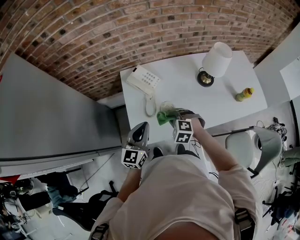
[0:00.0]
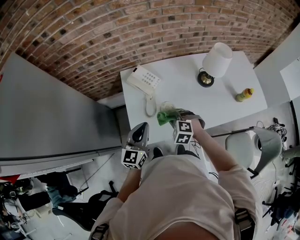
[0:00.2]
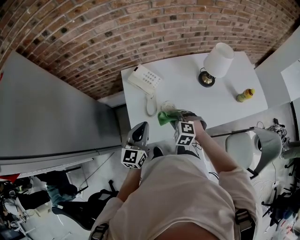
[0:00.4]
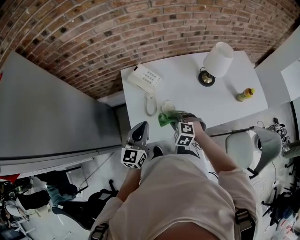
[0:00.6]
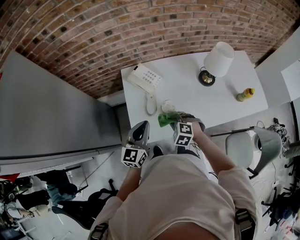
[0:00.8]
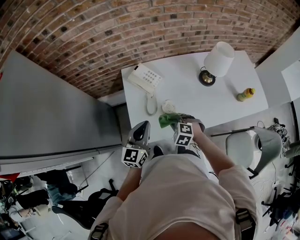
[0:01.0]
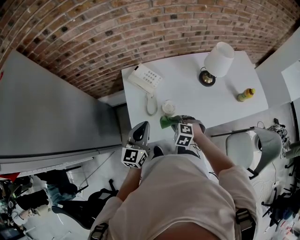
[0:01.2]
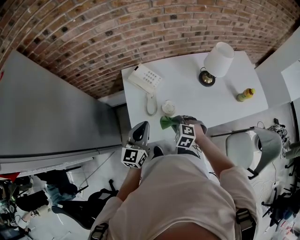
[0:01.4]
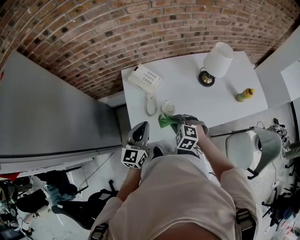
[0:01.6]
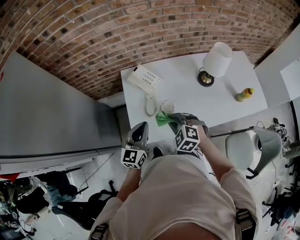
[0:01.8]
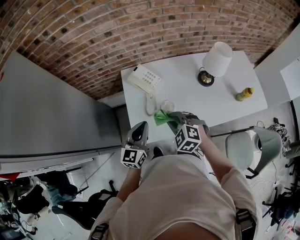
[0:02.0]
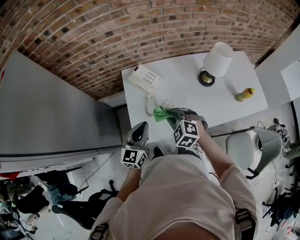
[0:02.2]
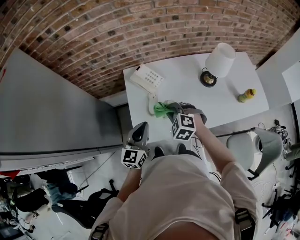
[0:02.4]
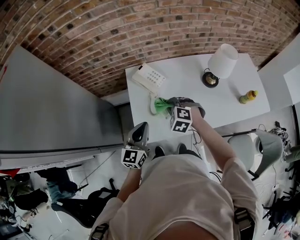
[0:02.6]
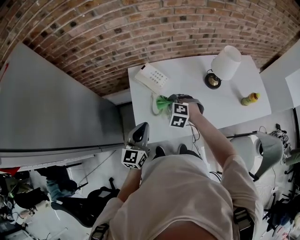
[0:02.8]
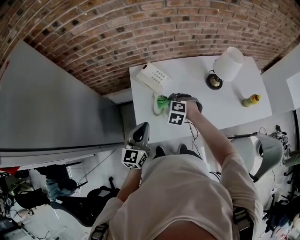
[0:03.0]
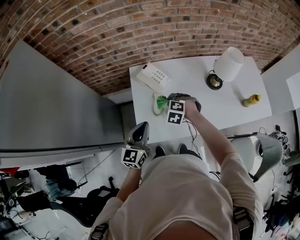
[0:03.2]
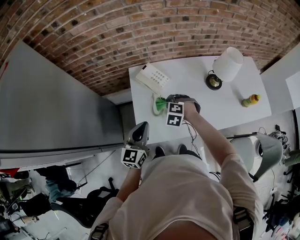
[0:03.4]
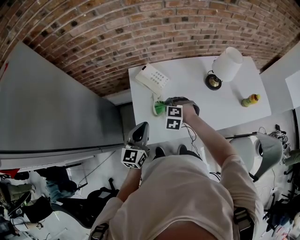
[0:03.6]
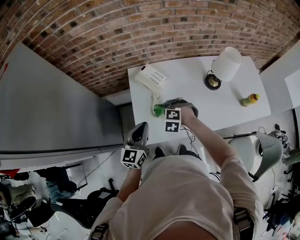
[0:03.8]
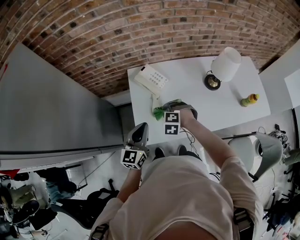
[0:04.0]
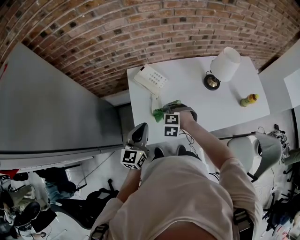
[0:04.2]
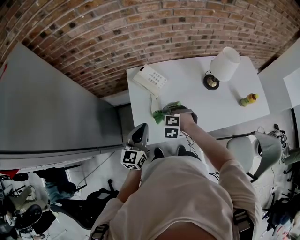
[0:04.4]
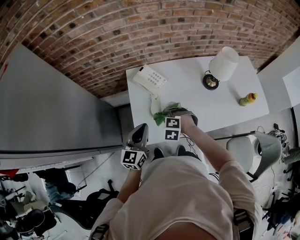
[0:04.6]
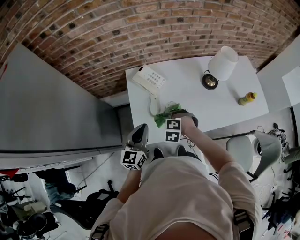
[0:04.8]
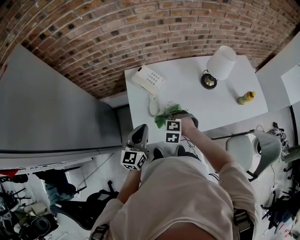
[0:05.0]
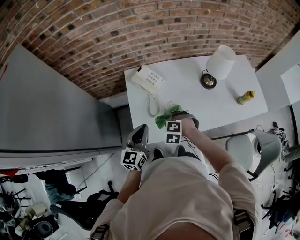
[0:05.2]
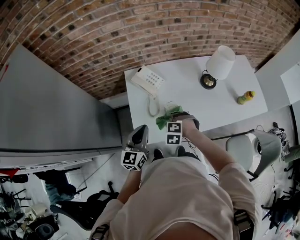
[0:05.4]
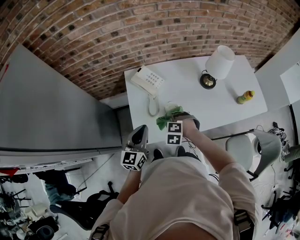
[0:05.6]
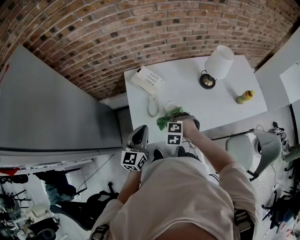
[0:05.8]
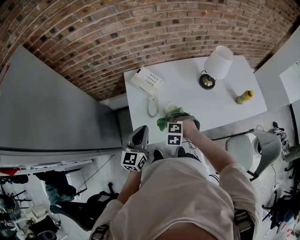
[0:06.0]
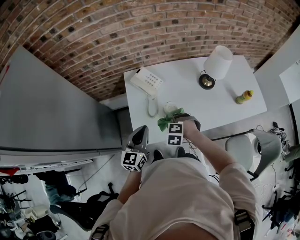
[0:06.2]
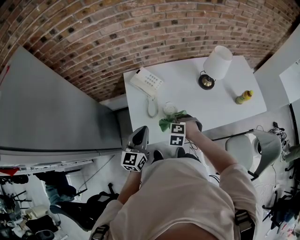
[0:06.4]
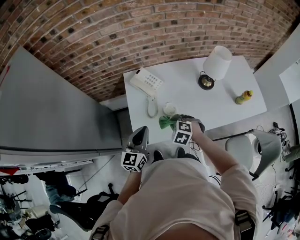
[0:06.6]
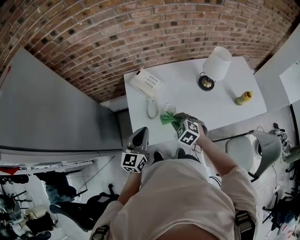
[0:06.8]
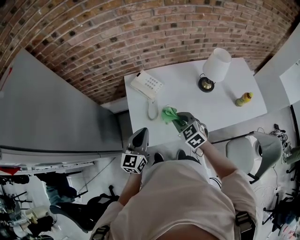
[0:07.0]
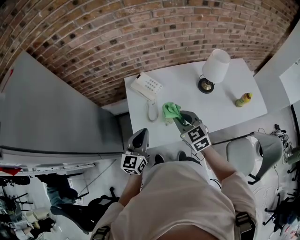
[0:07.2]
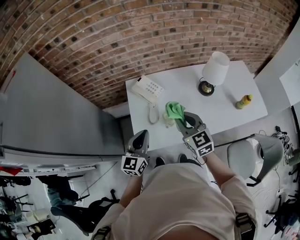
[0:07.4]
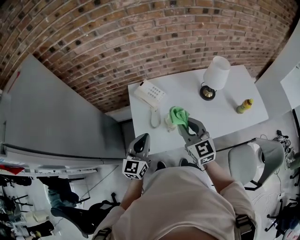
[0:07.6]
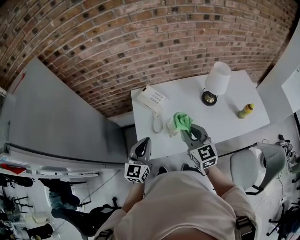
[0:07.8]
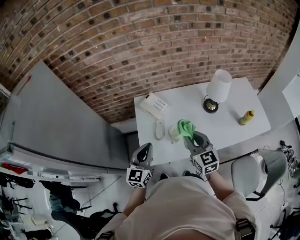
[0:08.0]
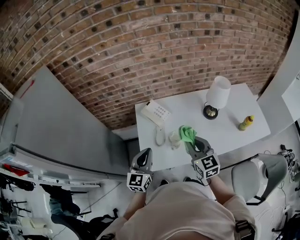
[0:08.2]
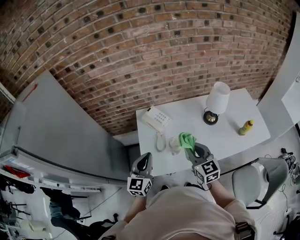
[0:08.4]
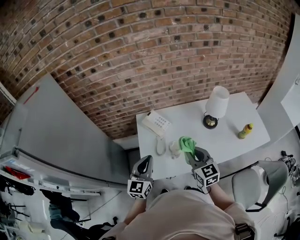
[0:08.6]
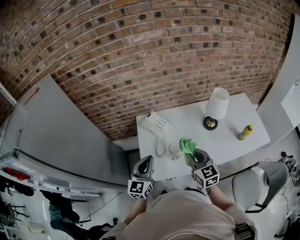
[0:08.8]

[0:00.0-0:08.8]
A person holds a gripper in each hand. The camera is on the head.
0:00.0 to 0:01.4: The grippers move only a little.
0:01.4 to 0:03.0: The right gripper goes some 10 cm forward.
0:03.0 to 0:04.4: The right gripper is displaced backward by some 5 cm.
0:04.4 to 0:05.8: The right gripper changes place by about 5 cm.
0:05.8 to 0:07.4: The right gripper moves upward, roughly 20 cm, and tips its fingers upward by roughly 50 degrees.
0:07.4 to 0:08.8: The grippers make only small movements.

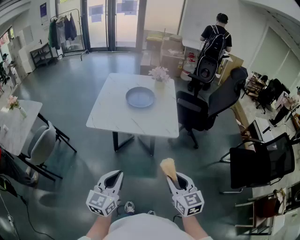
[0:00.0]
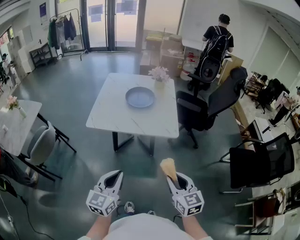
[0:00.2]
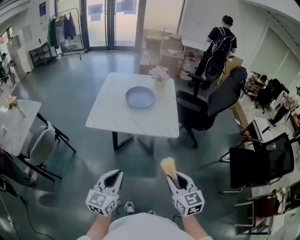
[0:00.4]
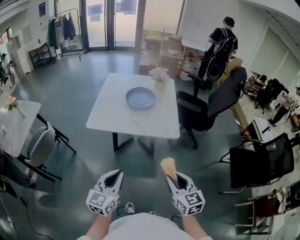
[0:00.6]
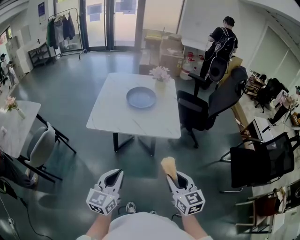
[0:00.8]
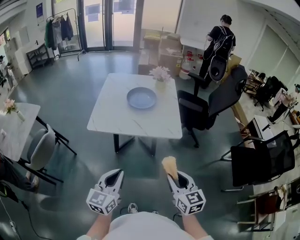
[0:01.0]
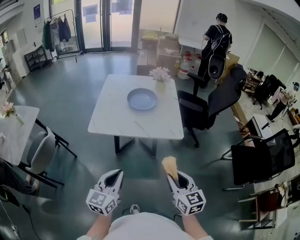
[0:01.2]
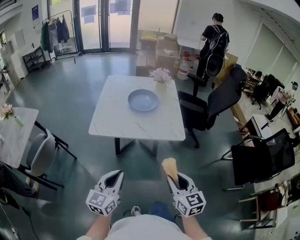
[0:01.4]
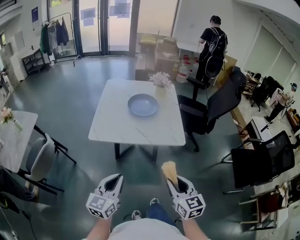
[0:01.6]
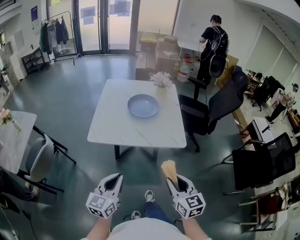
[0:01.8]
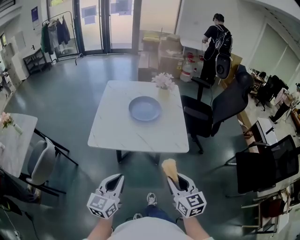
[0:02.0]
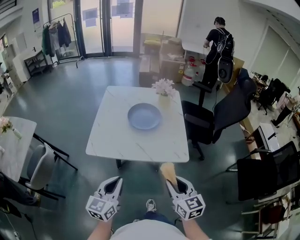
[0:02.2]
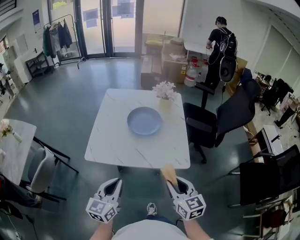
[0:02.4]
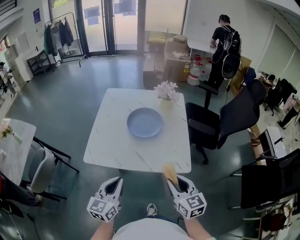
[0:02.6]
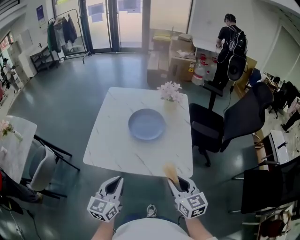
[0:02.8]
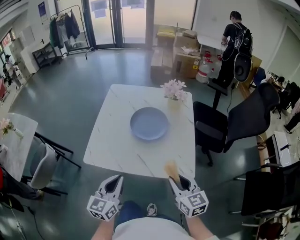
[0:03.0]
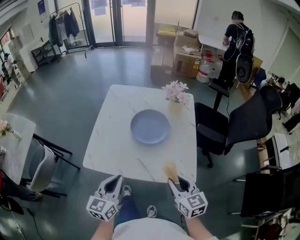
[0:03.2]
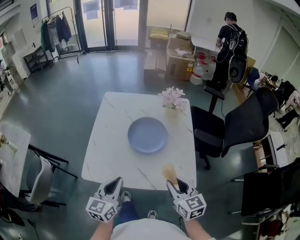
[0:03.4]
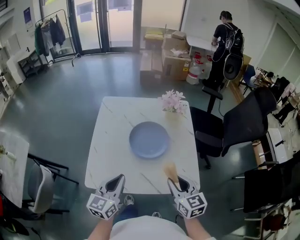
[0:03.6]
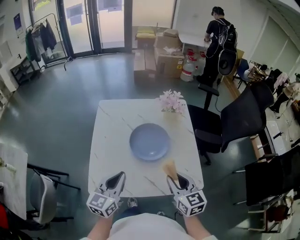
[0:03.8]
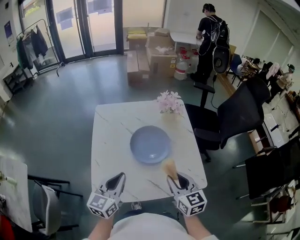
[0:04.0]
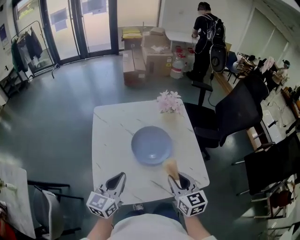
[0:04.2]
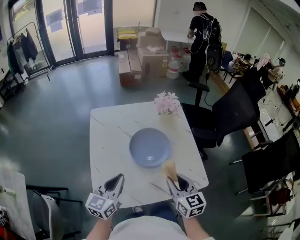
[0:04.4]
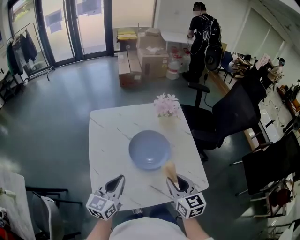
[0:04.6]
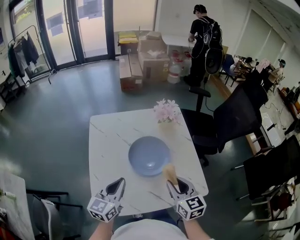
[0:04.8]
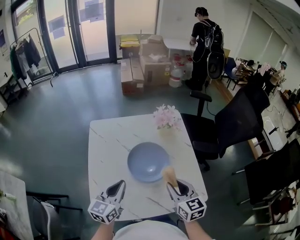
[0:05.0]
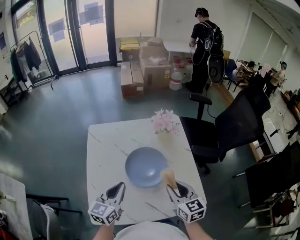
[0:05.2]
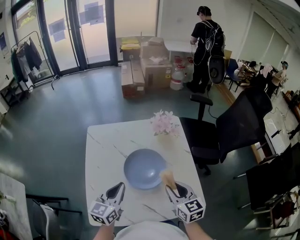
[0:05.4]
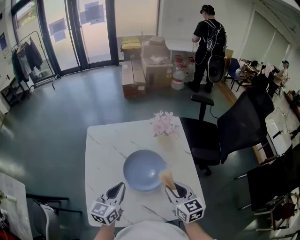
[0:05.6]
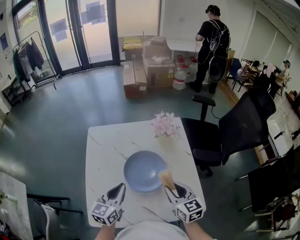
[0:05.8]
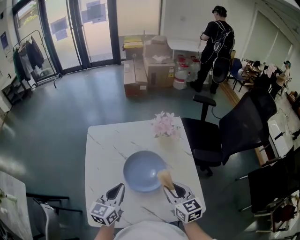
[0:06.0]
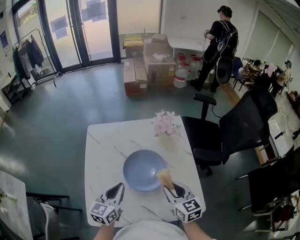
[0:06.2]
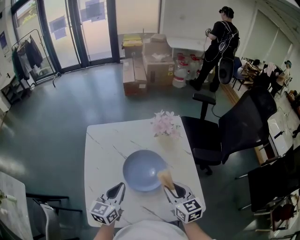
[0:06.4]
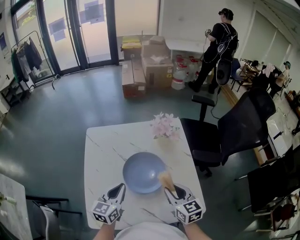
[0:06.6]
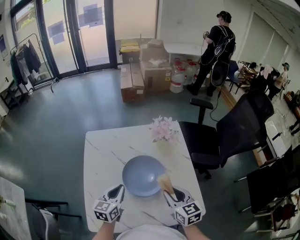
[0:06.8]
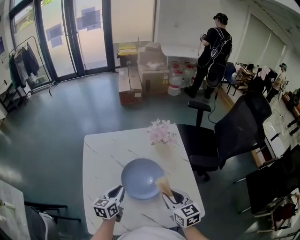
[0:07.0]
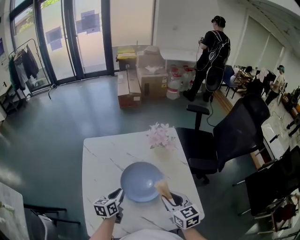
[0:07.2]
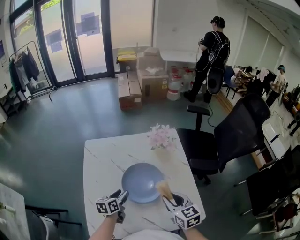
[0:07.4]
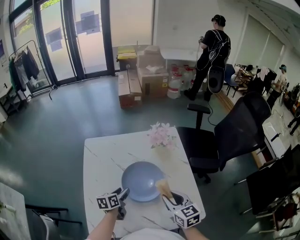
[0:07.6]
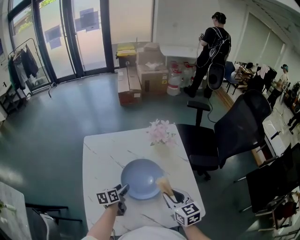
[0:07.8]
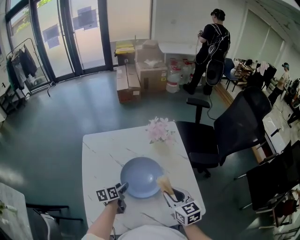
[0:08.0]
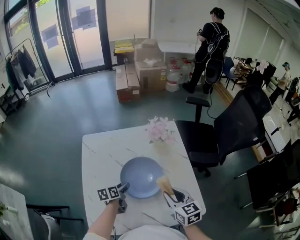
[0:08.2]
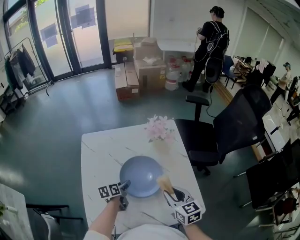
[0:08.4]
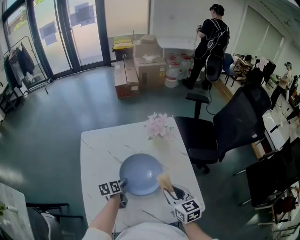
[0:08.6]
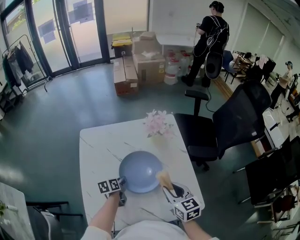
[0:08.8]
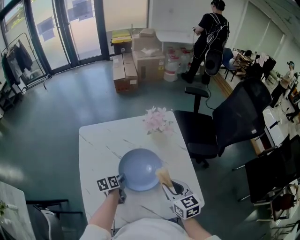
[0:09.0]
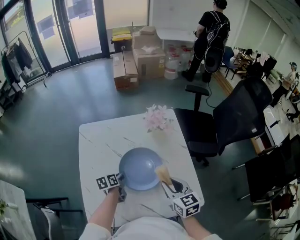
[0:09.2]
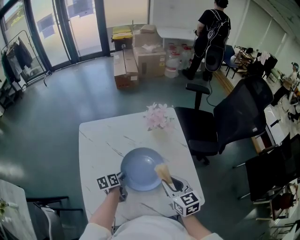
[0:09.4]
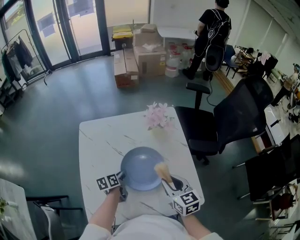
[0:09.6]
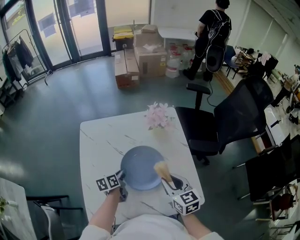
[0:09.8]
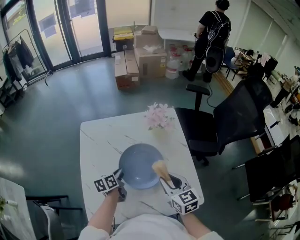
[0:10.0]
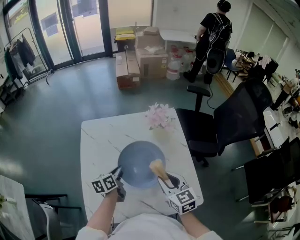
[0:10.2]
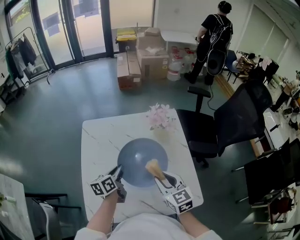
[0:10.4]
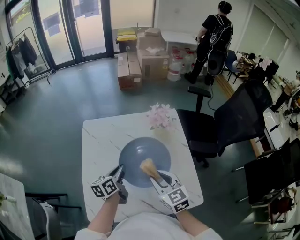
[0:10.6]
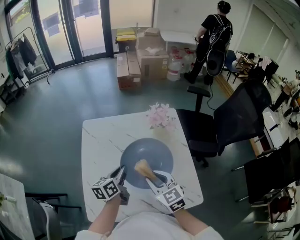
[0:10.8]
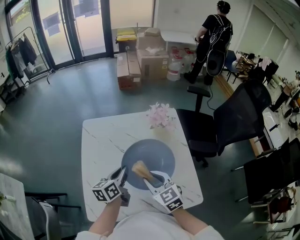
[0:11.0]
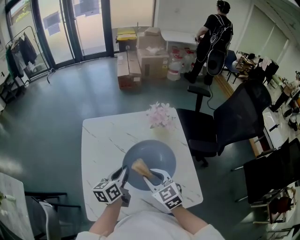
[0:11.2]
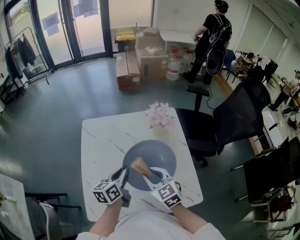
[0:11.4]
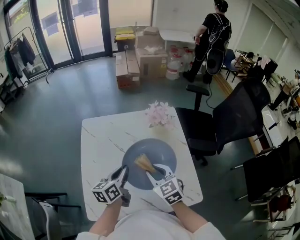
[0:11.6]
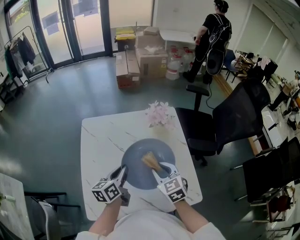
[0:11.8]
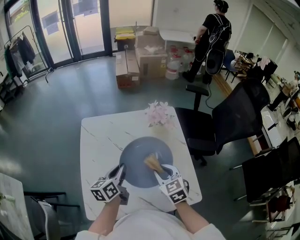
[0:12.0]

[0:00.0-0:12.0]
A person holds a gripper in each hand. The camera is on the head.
0:00.0 to 0:01.6: The left gripper moves to the left and forward, roughly 10 cm; the right gripper heads to the left, covering roughly 10 cm.
0:01.6 to 0:03.0: Both grippers travel together forward, approximately 25 cm.
0:03.0 to 0:04.4: The two grippers go roughly 20 cm forward and to the left. The right gripper turns by about 20 degrees. Meanwhile the left gripper changes its angle by roughly 20 degrees.
0:04.4 to 0:06.0: Both grippers move forward, about 10 cm.
0:06.0 to 0:07.6: The left gripper heads downward, covering roughly 15 cm, swivels about 30 degrees, and opens.
0:07.6 to 0:09.0: The left gripper shifts by roughly 5 cm, and closes up.
0:09.0 to 0:10.4: The left gripper shifts approximately 10 cm upward, and changes its angle by about 20 degrees, while the right gripper ends up roughly 5 cm from where it was.
0:10.4 to 0:12.0: The left gripper travels upward by about 5 cm.

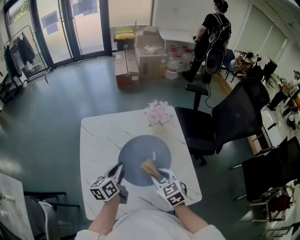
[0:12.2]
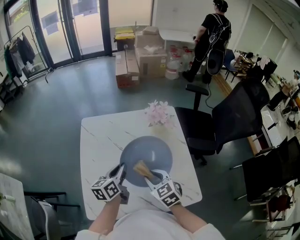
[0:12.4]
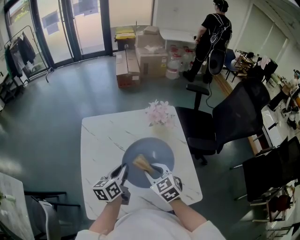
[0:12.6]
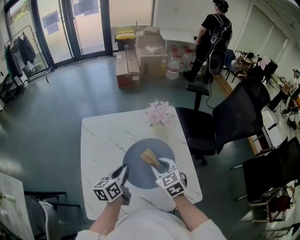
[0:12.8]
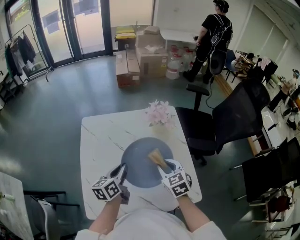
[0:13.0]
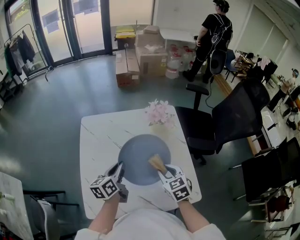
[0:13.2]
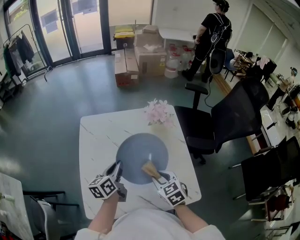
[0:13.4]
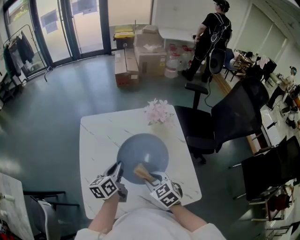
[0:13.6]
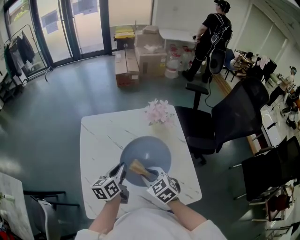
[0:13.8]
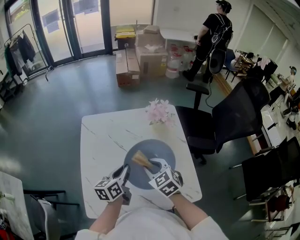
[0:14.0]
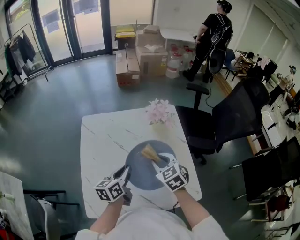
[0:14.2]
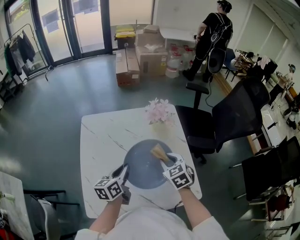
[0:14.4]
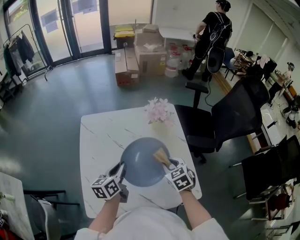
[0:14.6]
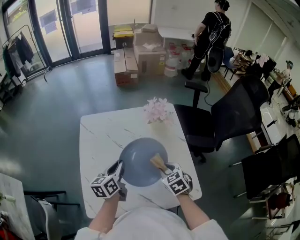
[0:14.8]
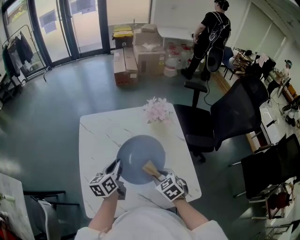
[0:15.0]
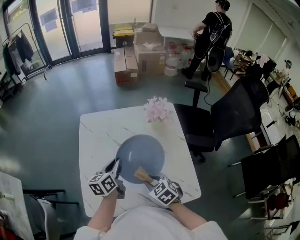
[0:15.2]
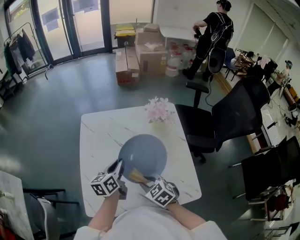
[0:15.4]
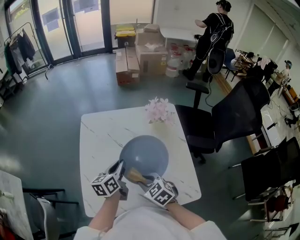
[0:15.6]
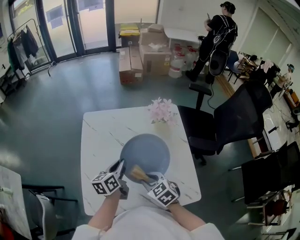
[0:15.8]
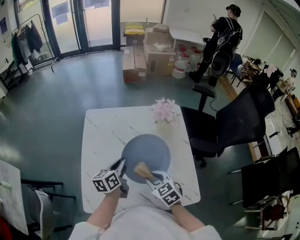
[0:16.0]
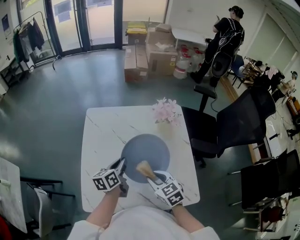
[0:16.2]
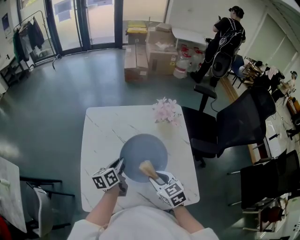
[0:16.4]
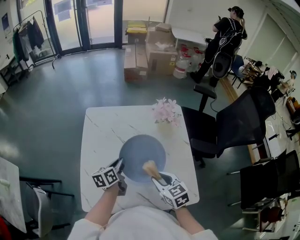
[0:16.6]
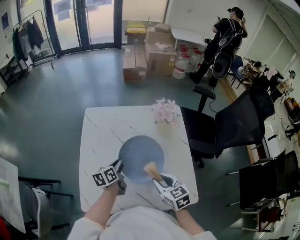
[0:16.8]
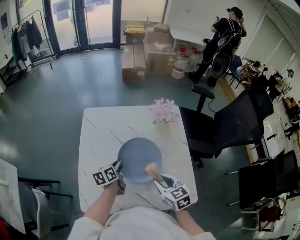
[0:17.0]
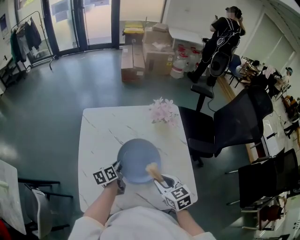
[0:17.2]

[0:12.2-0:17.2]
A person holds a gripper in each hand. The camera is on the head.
0:12.2 to 0:13.8: The right gripper goes some 5 cm to the left.
0:13.8 to 0:15.6: The right gripper travels to the right and back again, some 10 cm each way.
0:15.6 to 0:17.2: The right gripper moves to the right, some 10 cm, and turns by some 20 degrees, while the left gripper is displaced downward by some 10 cm.